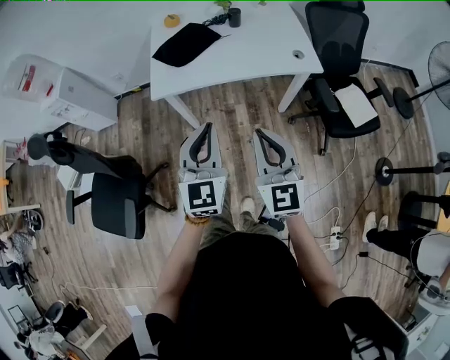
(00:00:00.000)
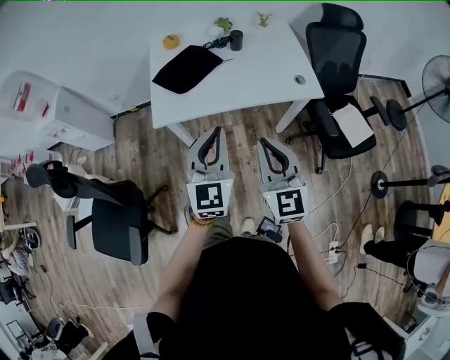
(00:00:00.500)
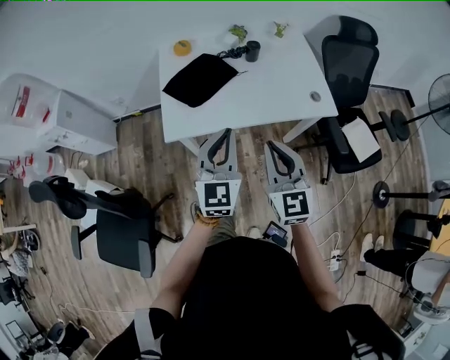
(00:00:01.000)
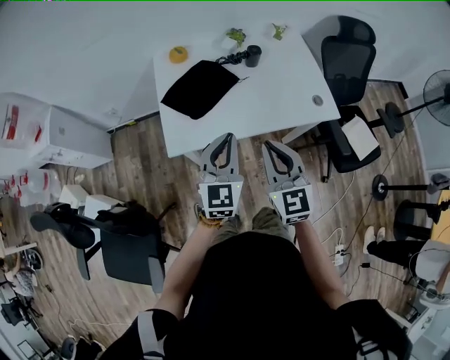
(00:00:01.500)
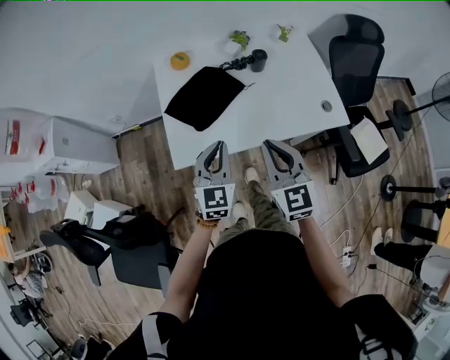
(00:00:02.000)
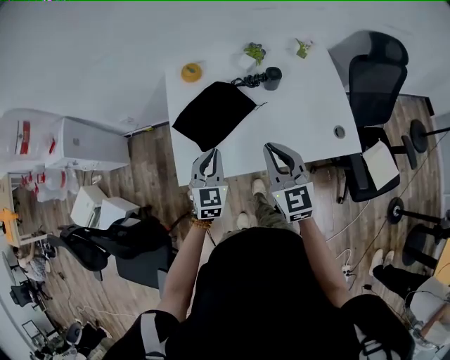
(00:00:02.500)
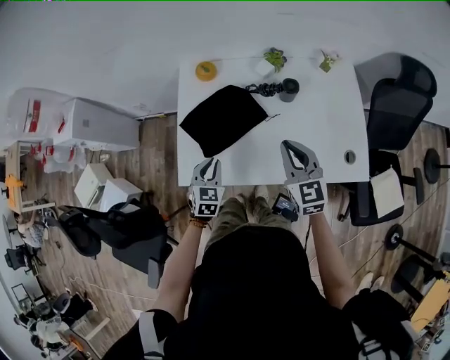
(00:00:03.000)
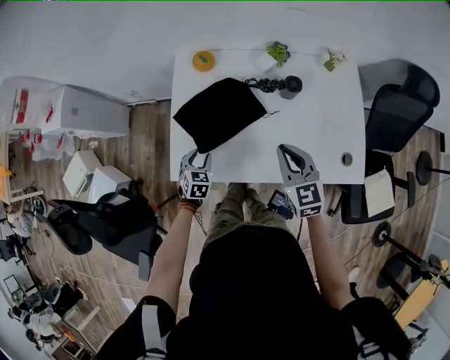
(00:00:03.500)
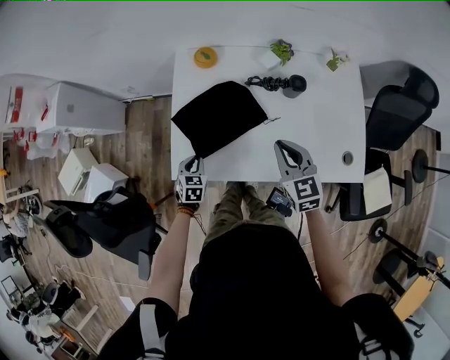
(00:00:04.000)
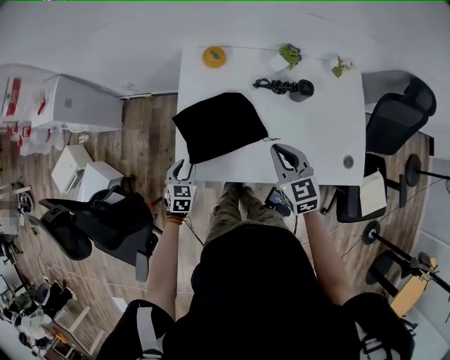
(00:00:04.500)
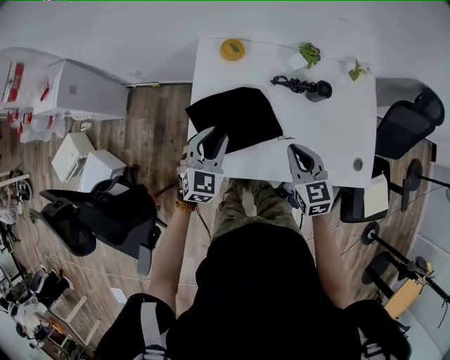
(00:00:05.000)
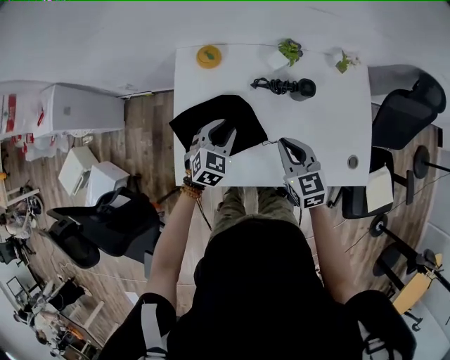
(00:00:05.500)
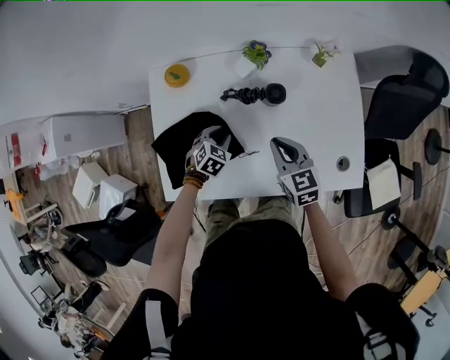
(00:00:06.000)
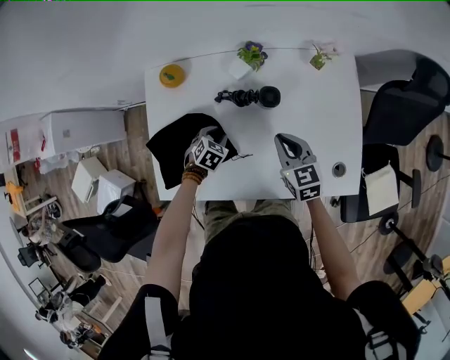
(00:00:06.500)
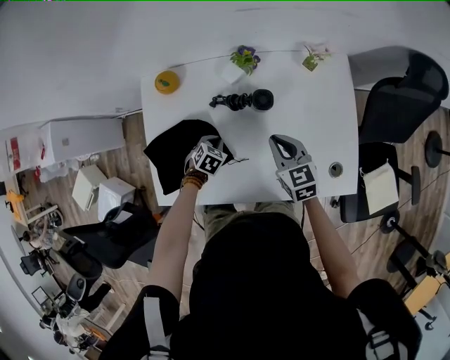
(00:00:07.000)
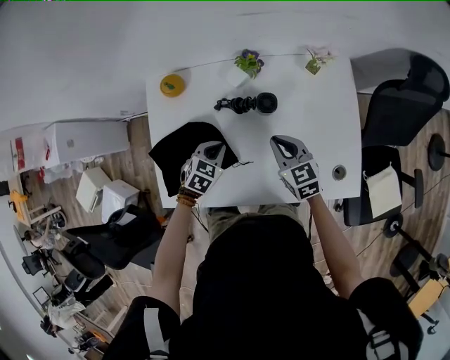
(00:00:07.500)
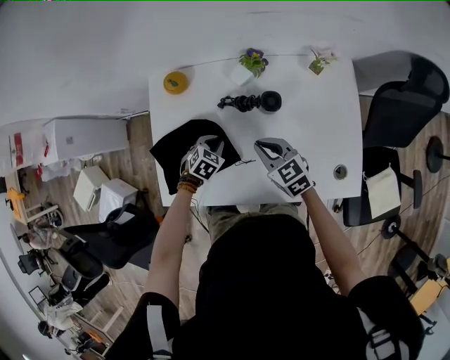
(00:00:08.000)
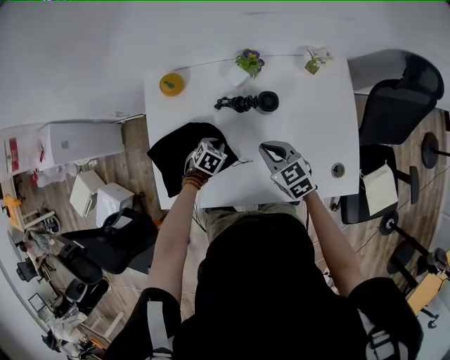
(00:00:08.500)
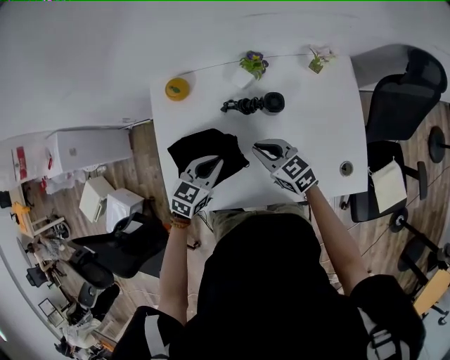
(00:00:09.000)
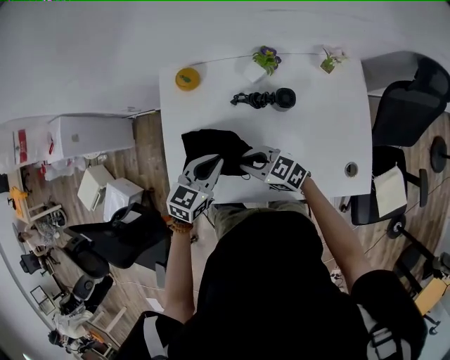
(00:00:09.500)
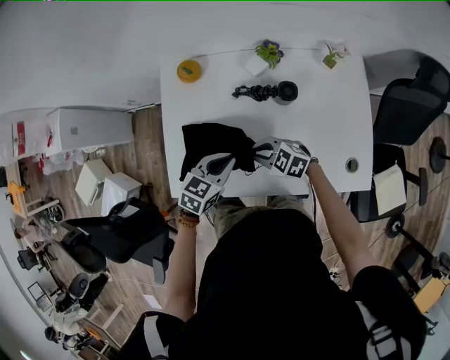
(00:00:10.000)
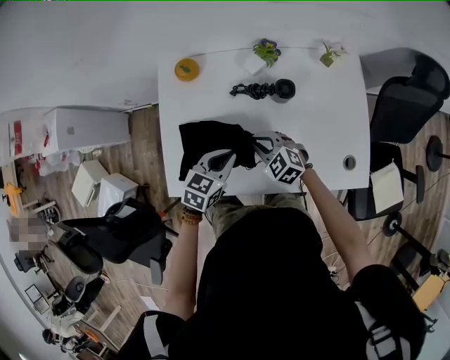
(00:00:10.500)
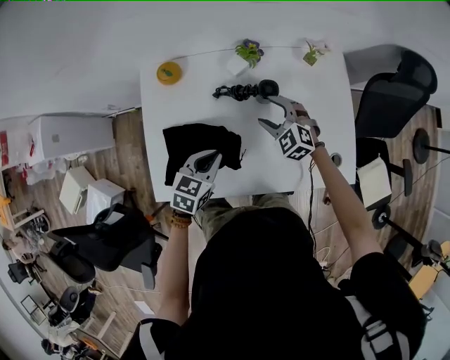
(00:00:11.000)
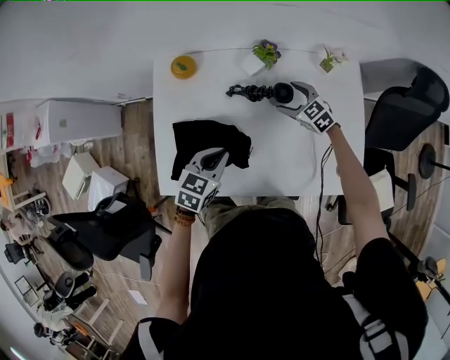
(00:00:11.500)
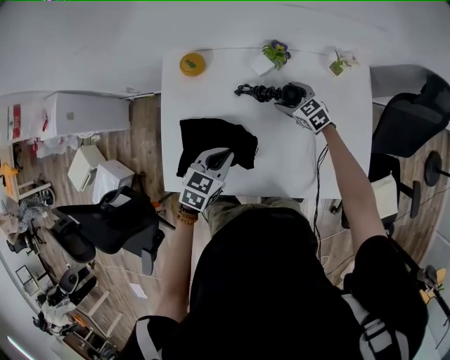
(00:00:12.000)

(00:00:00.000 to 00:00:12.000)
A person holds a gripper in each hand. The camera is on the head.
00:00:00.000 - 00:00:02.000: The two grippers go approximately 35 cm forward.
00:00:02.000 - 00:00:04.000: The left gripper heads downward and forward, covering approximately 30 cm, angles its fingers downward, by approximately 40 degrees, and opens and closes again, while the right gripper goes approximately 25 cm forward and downward, and changes its angle by approximately 20 degrees.
00:00:04.000 - 00:00:06.000: The left gripper heads to the right and forward, covering about 25 cm, and rotates some 30 degrees, while the right gripper heads to the right, forward and downward, covering roughly 15 cm.
00:00:06.000 - 00:00:08.000: The left gripper moves up and down over roughly 10 cm, changing direction 2 times, and closes up.
00:00:08.000 - 00:00:10.000: The left gripper is displaced upward by some 15 cm, and swivels roughly 30 degrees. The right gripper shifts by roughly 10 cm, and turns by about 40 degrees.
00:00:10.000 - 00:00:12.000: The right gripper shifts by about 25 cm, turns by about 30 degrees, and opens its fingers.

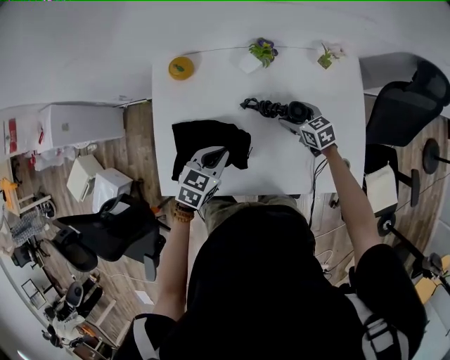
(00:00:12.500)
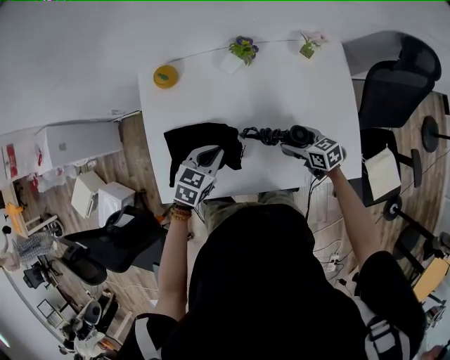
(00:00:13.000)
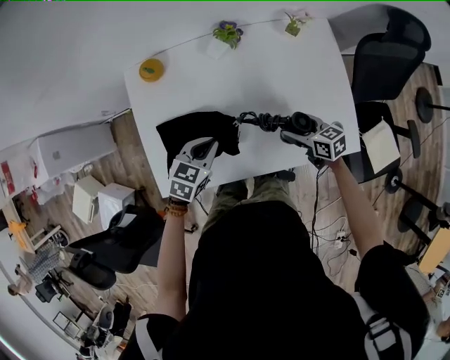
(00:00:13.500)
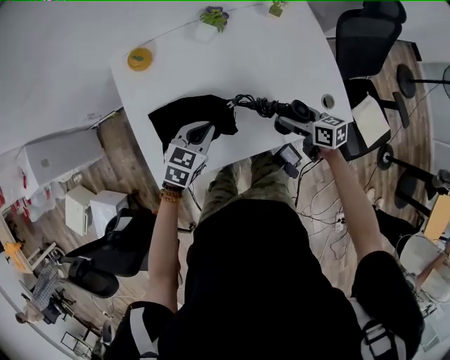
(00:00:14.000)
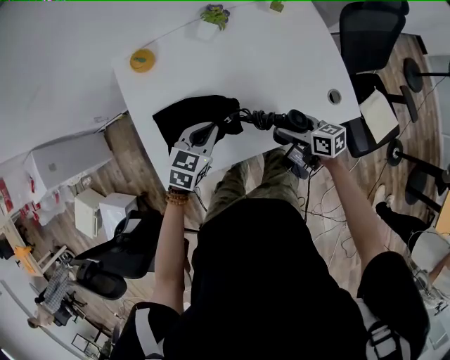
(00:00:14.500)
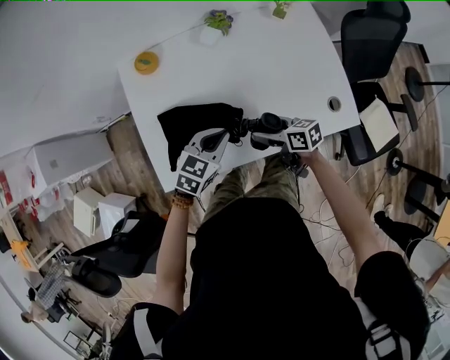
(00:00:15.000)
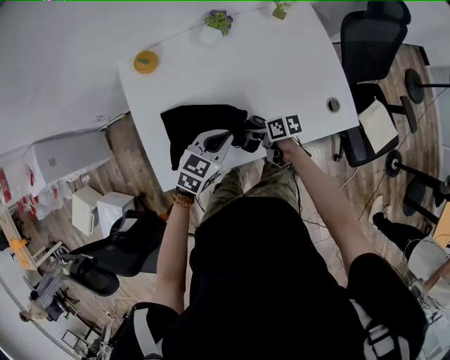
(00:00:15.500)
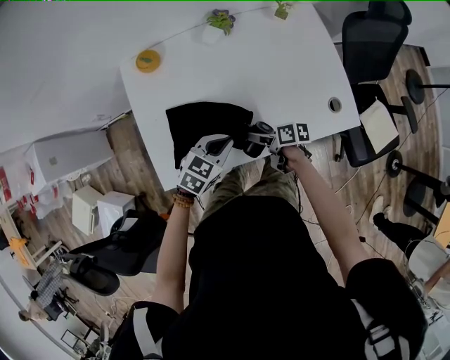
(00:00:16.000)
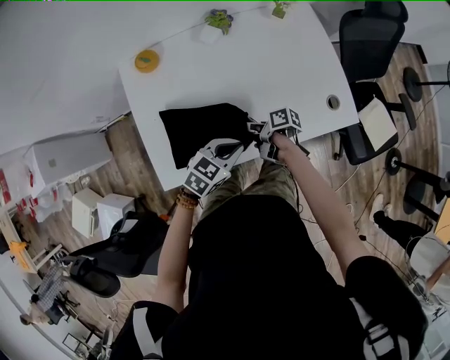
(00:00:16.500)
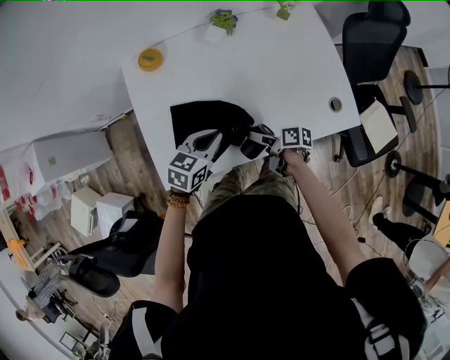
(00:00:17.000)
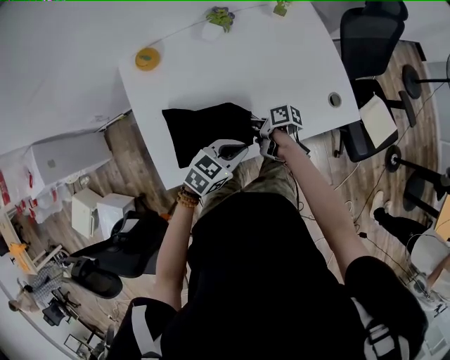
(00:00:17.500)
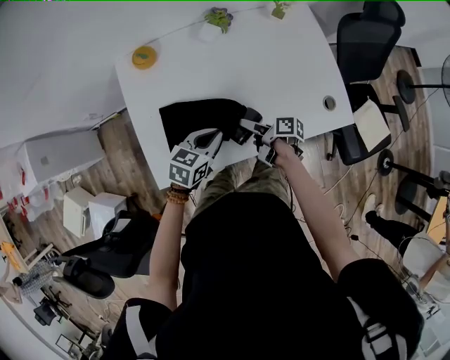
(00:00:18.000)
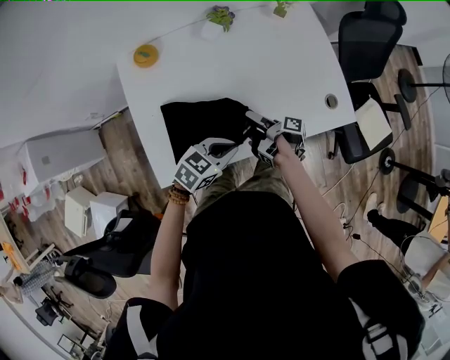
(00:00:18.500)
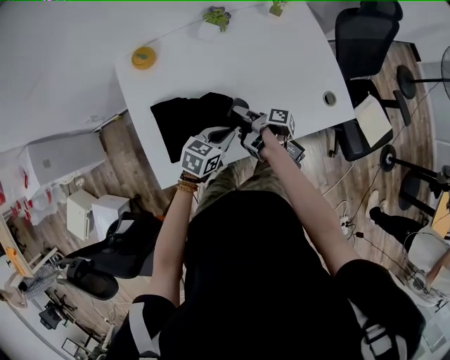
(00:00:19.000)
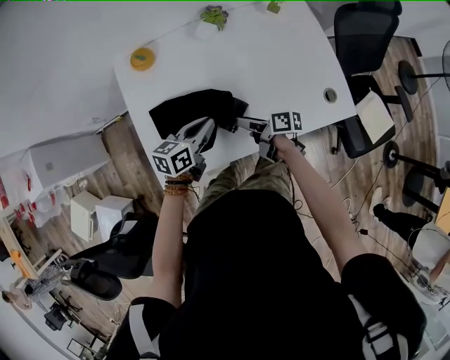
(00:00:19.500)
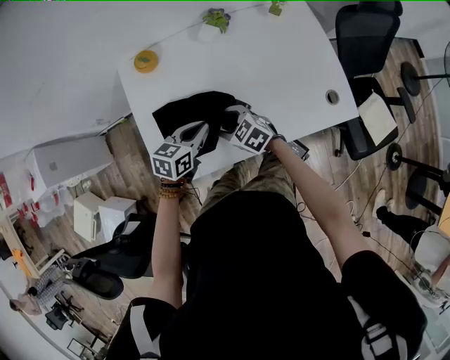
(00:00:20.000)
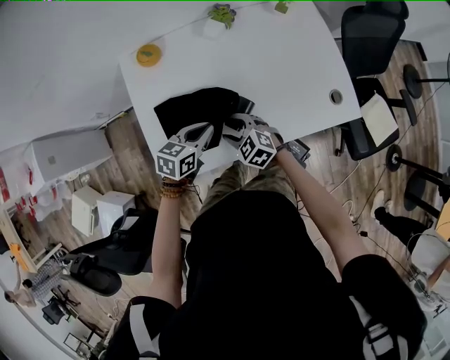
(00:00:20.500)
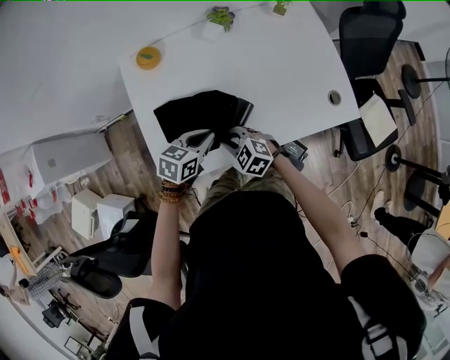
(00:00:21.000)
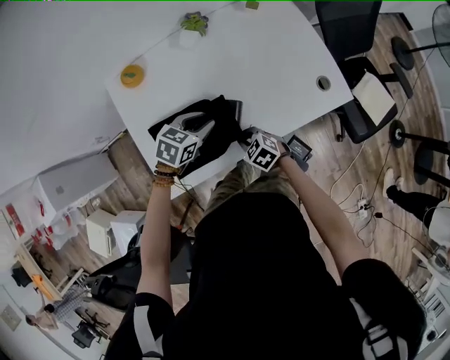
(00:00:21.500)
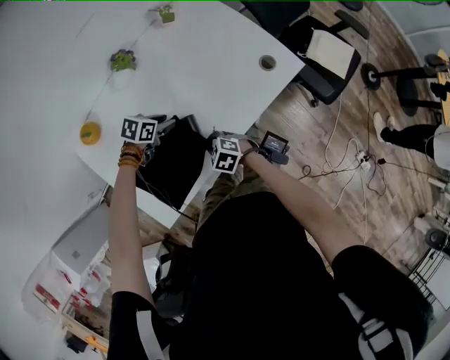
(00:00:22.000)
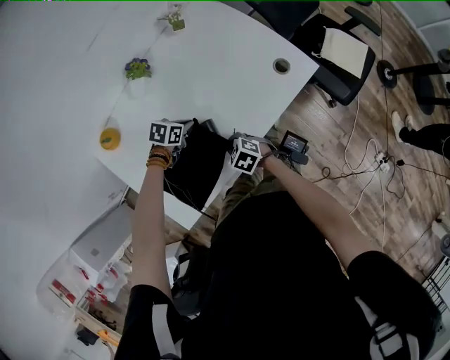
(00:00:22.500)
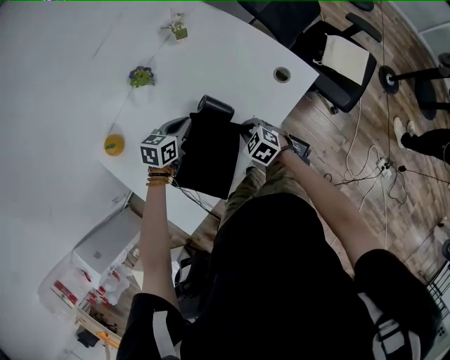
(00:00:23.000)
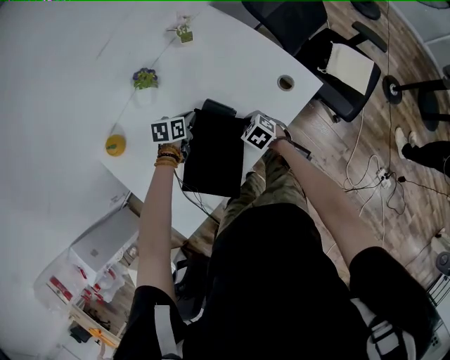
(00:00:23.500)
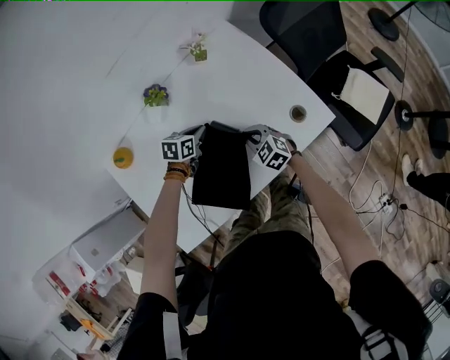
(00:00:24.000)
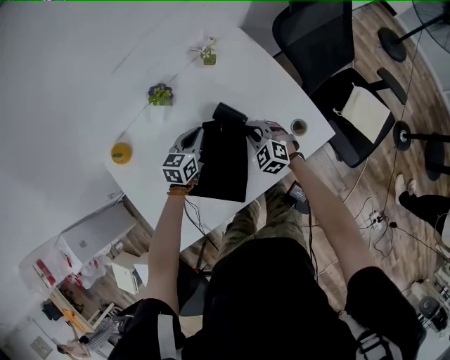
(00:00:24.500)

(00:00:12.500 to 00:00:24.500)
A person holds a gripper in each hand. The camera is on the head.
00:00:12.500 - 00:00:14.500: The right gripper travels backward by some 20 cm, and swivels approximately 30 degrees.
00:00:14.500 - 00:00:16.500: The left gripper moves roughly 10 cm. Meanwhile the right gripper moves about 15 cm, and rolls clockwise, seen from behind, by approximately 50 degrees.
00:00:16.500 - 00:00:18.500: The right gripper turns by about 30 degrees.
00:00:18.500 - 00:00:20.500: The right gripper shifts about 10 cm to the left, rolls counterclockwise, seen from behind, by about 130 degrees, and closes, while the left gripper is displaced to the left and forward by approximately 10 cm, and rotates about 20 degrees.
00:00:20.500 - 00:00:22.500: The right gripper moves some 15 cm, swivels some 30 degrees, and closes its fingers. Meanwhile the left gripper shifts by approximately 20 cm, swivels about 40 degrees, and opens, then closes once more.
00:00:22.500 - 00:00:24.500: The left gripper goes up and down, some 10 cm each way, reversing 2 times, and turns by about 40 degrees. The right gripper changes place by about 25 cm, and rotates some 30 degrees.

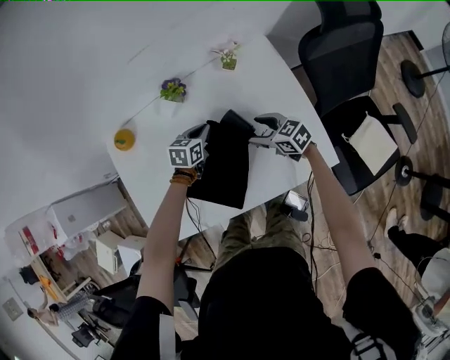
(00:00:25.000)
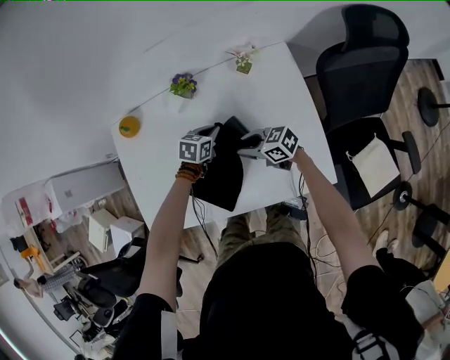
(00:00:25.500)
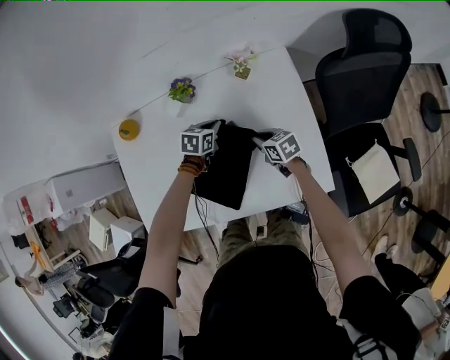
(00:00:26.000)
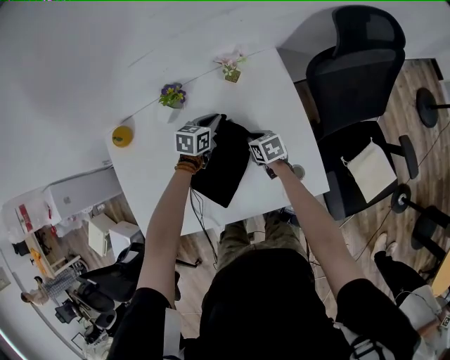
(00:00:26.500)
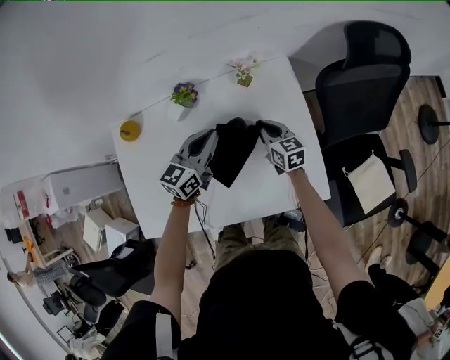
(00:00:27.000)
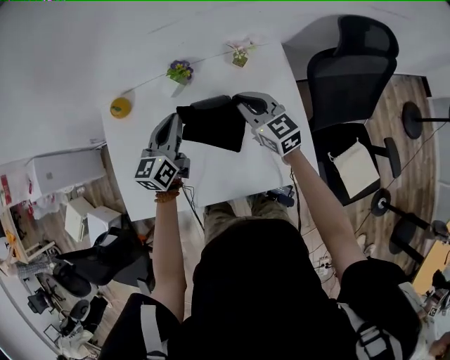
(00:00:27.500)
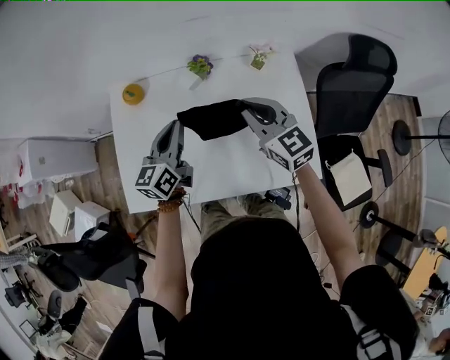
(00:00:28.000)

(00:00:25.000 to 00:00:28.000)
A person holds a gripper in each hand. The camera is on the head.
00:00:25.000 - 00:00:26.500: The right gripper goes about 10 cm downward, swivels roughly 30 degrees, and closes up, while the left gripper changes place by roughly 10 cm.
00:00:26.500 - 00:00:28.000: The left gripper moves upward, to the left and backward, roughly 35 cm, and tips its fingers upward by roughly 40 degrees. Meanwhile the right gripper goes approximately 35 cm upward, and tips its fingers upward by roughly 30 degrees.
